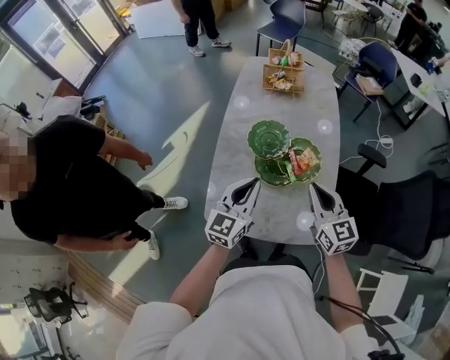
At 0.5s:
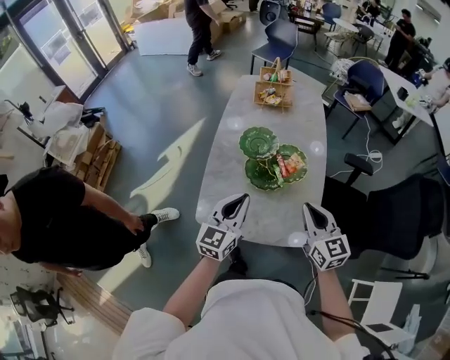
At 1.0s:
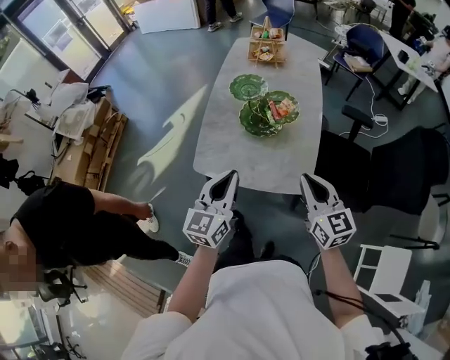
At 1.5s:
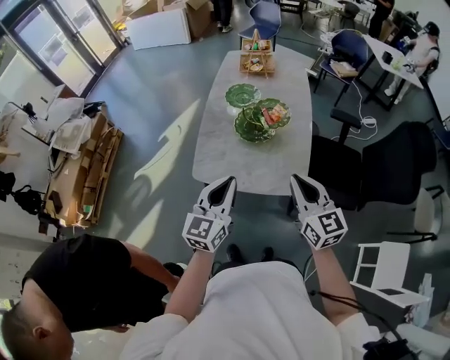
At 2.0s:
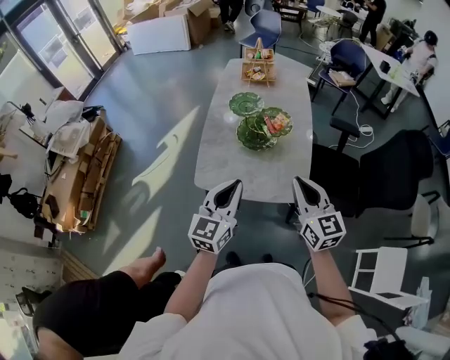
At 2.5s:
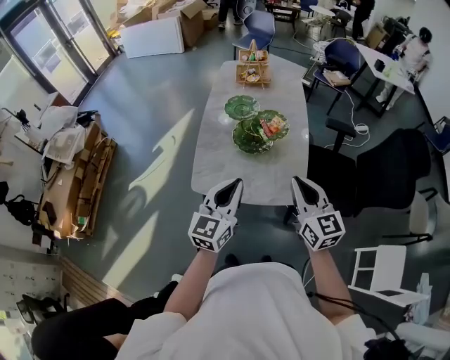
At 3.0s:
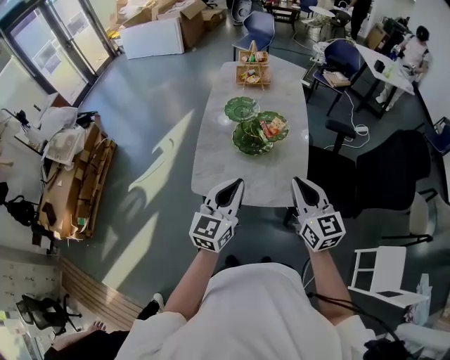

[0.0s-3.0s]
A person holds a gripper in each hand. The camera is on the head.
0.0s to 1.5s: Both grippers travel together backward, some 25 cm.
1.5s to 3.0s: The grippers stay close to where they were, moving slightly.

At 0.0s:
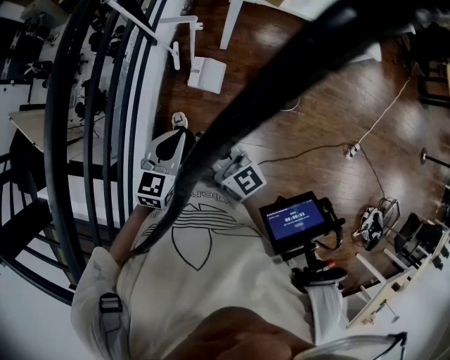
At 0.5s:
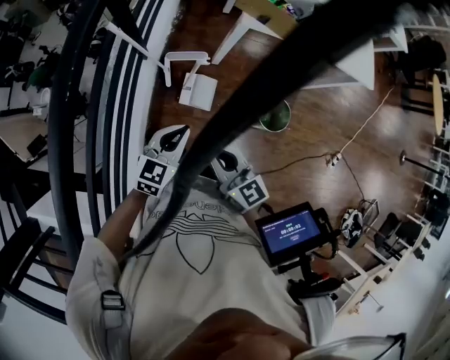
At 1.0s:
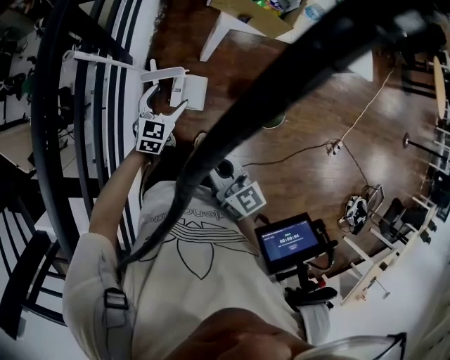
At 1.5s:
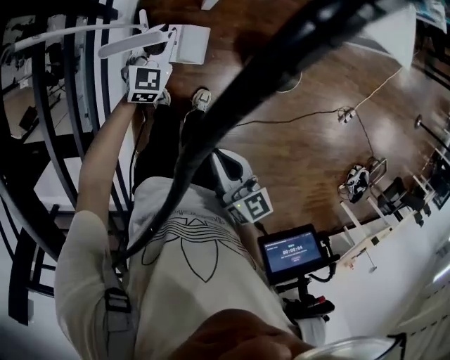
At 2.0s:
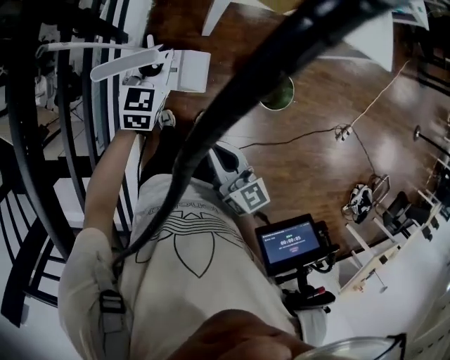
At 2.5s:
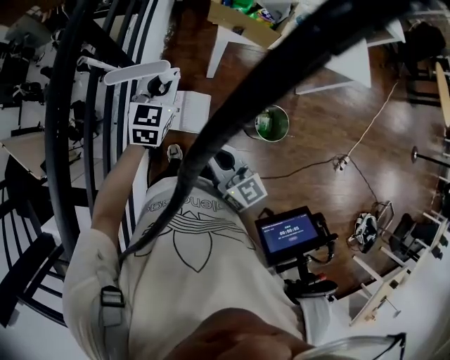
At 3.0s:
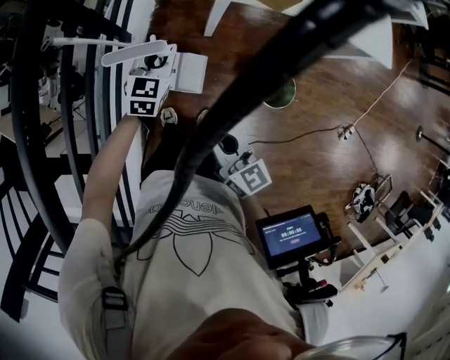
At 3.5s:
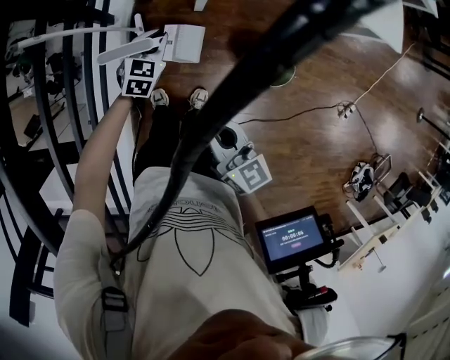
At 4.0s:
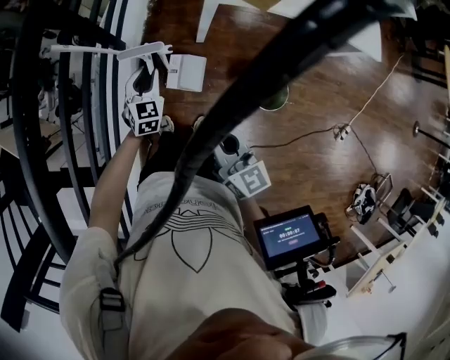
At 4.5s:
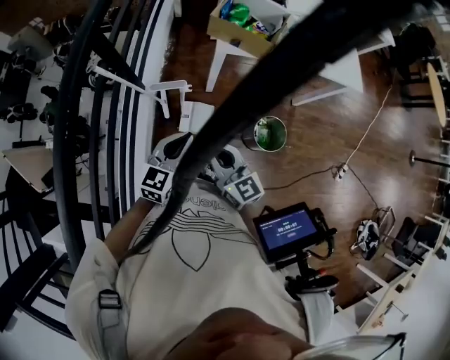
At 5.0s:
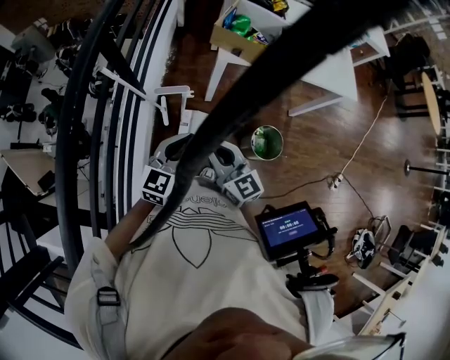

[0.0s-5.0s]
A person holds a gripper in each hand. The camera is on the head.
0.0s to 2.5s: The left gripper is displaced forward by approximately 20 cm, and opens and closes again; the right gripper travels backward and back again, roughly 5 cm each way.
2.5s to 5.0s: The left gripper travels backward by approximately 10 cm, and travels downward and back again, approximately 20 cm each way. The right gripper moves forward, some 5 cm.

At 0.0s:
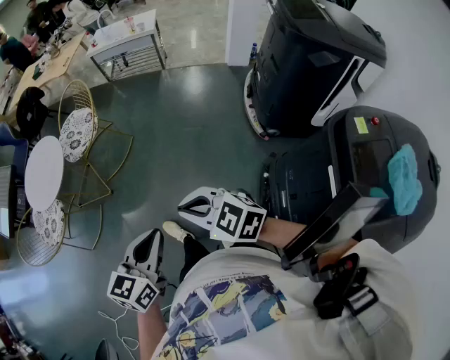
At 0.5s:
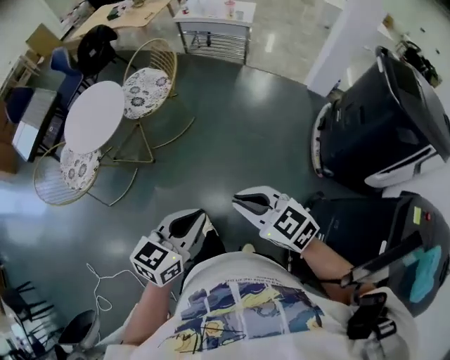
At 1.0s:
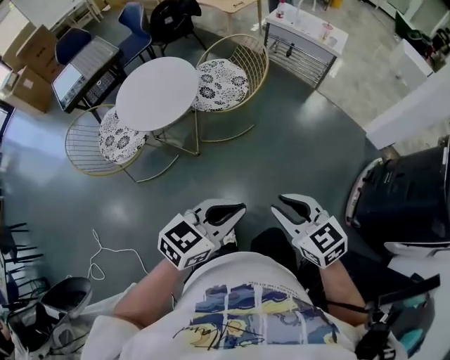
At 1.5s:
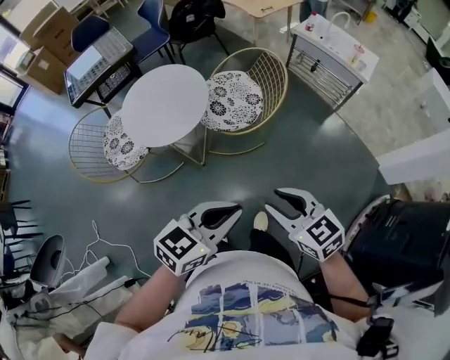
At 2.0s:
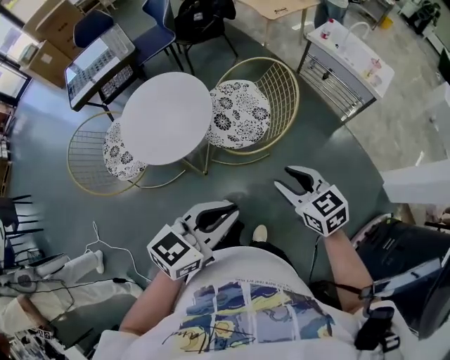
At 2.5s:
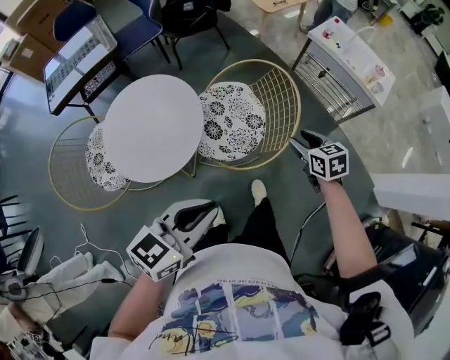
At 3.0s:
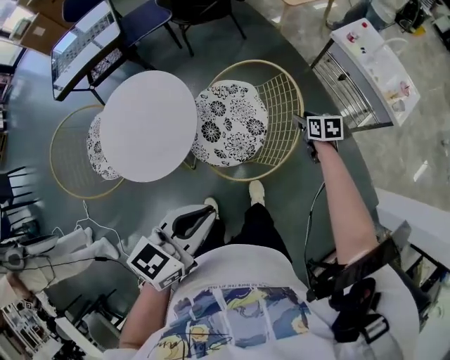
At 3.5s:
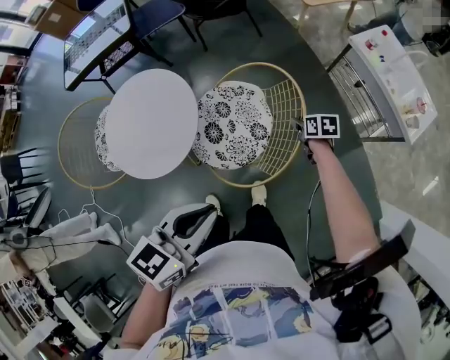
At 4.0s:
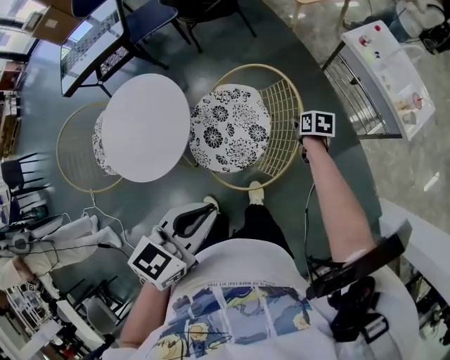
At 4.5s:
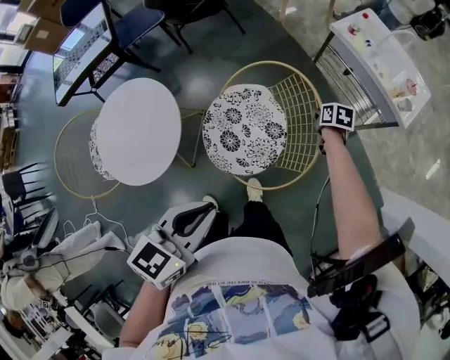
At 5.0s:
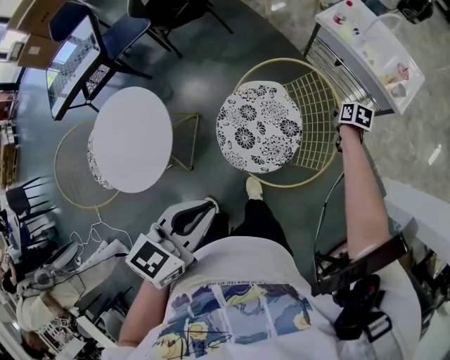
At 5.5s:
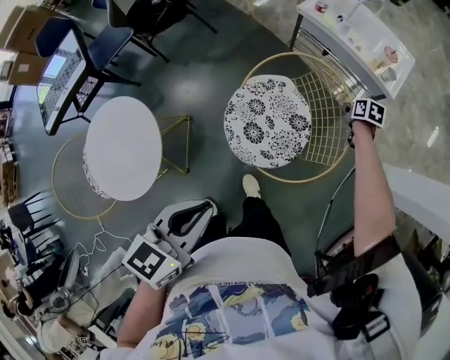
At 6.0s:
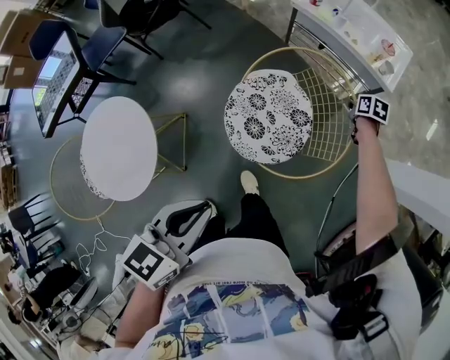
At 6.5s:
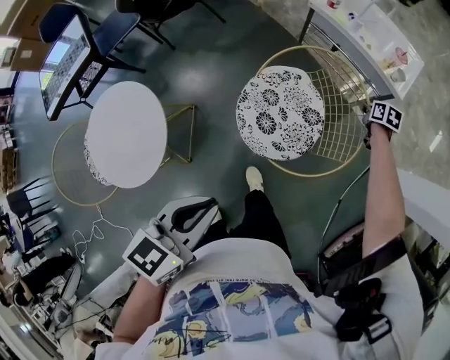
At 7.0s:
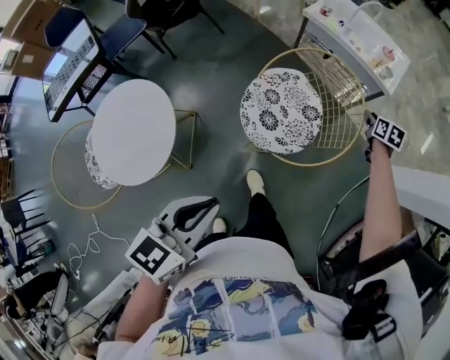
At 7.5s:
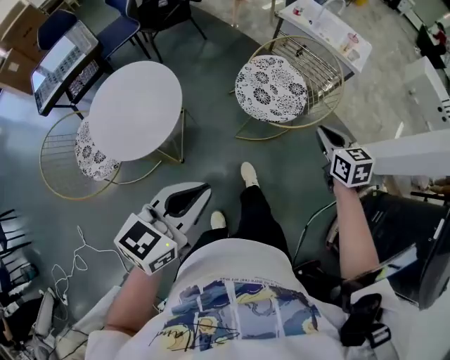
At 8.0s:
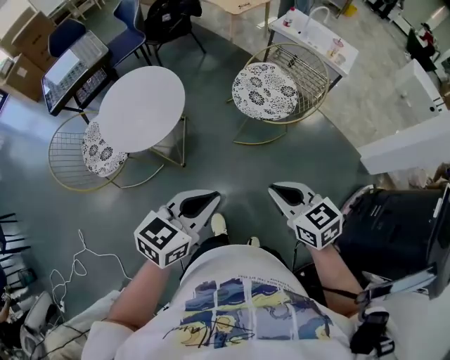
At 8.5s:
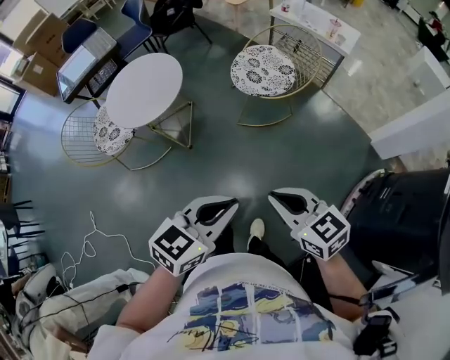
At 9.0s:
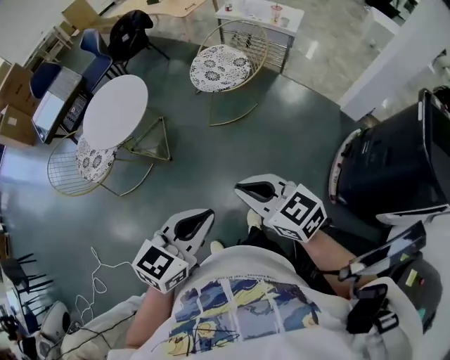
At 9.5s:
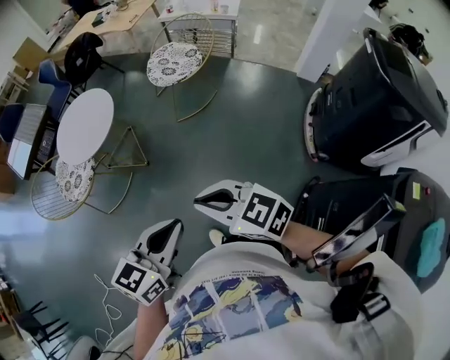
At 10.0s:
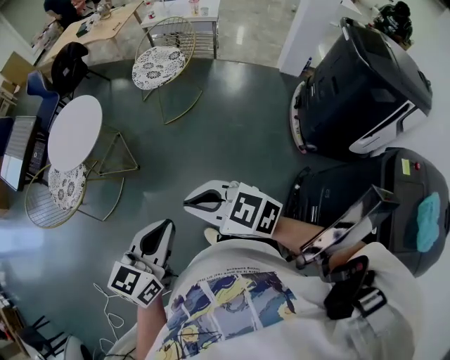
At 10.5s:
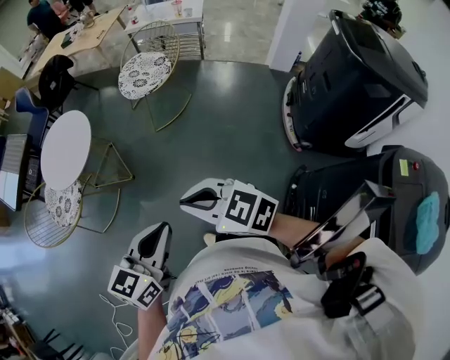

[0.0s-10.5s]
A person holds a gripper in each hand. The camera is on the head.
0.0s to 2.0s: The pair of grippers is taken forward, about 60 cm. The left gripper turns by roughly 20 degrees; the right gripper opens up.
2.0s to 4.0s: The left gripper travels forward by about 30 cm, and turns by some 20 degrees. The right gripper is displaced forward and downward by roughly 50 cm, and turns by roughly 40 degrees.
4.0s to 6.5s: The right gripper moves roughly 35 cm, and turns by some 30 degrees.
6.5s to 8.5s: Both grippers are carried backward, roughly 70 cm. The right gripper tilts its fingers approximately 30 degrees upward.
8.5s to 10.5s: Both grippers travel together backward and to the left, some 25 cm.

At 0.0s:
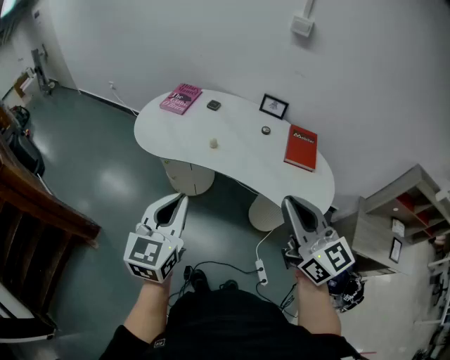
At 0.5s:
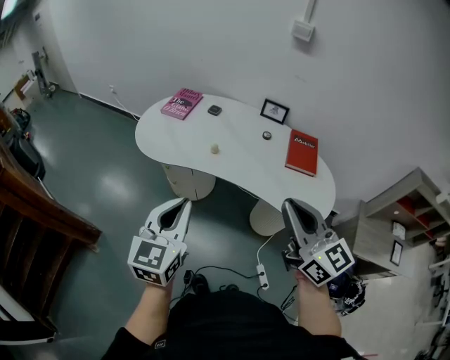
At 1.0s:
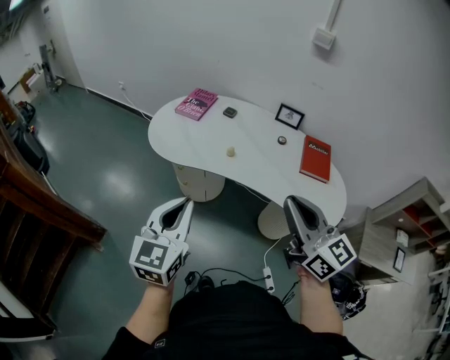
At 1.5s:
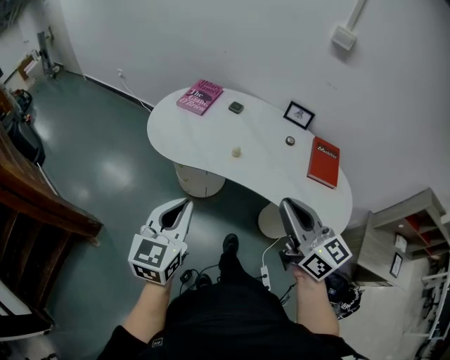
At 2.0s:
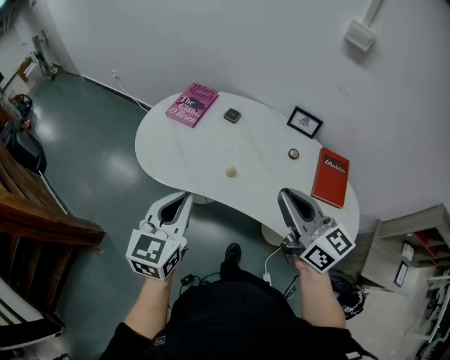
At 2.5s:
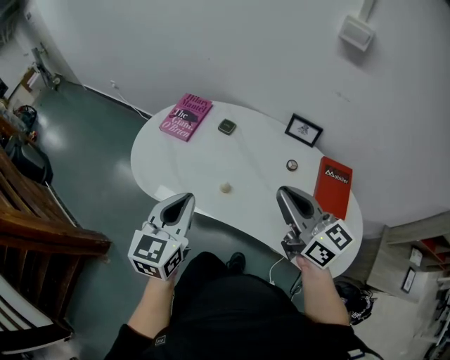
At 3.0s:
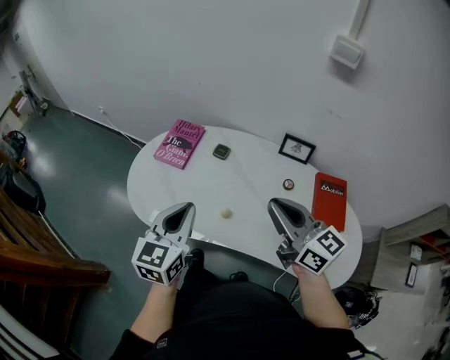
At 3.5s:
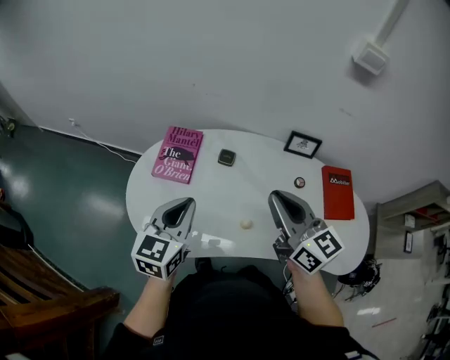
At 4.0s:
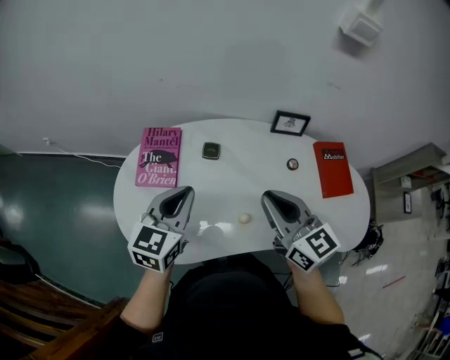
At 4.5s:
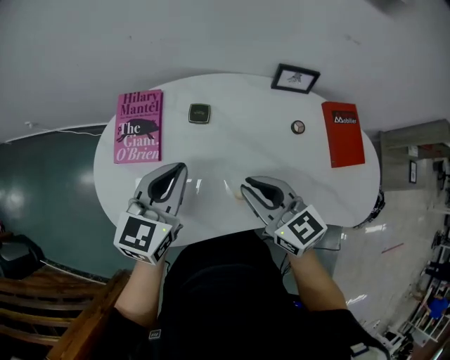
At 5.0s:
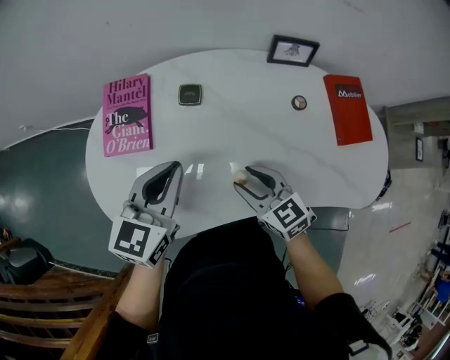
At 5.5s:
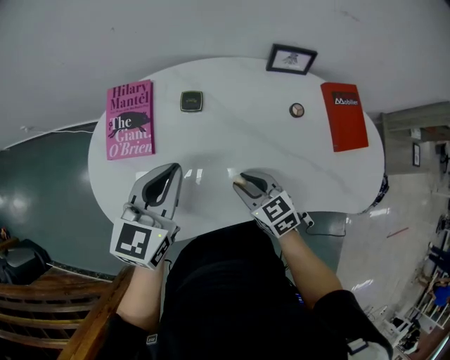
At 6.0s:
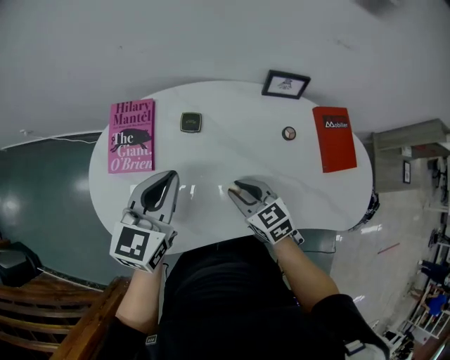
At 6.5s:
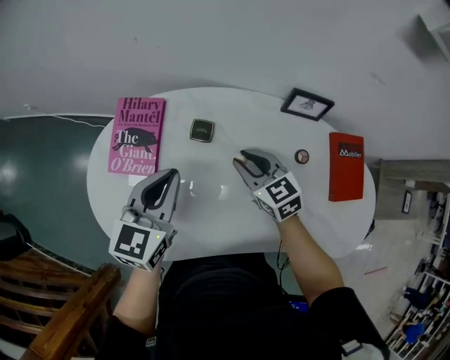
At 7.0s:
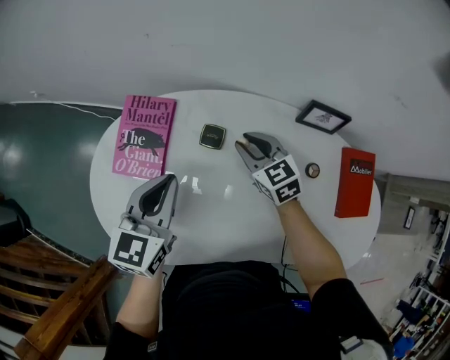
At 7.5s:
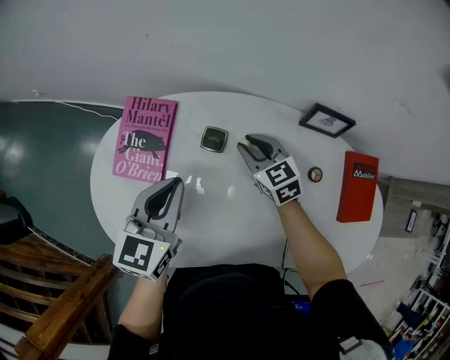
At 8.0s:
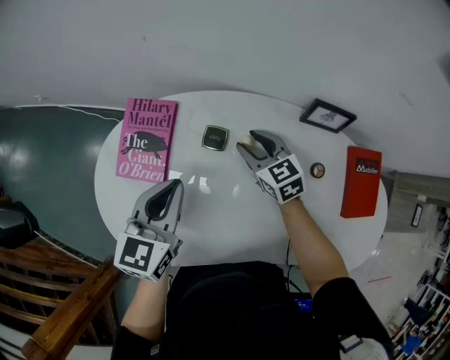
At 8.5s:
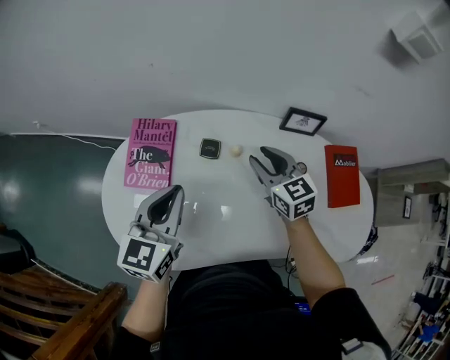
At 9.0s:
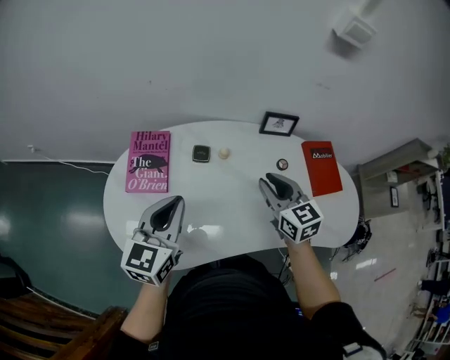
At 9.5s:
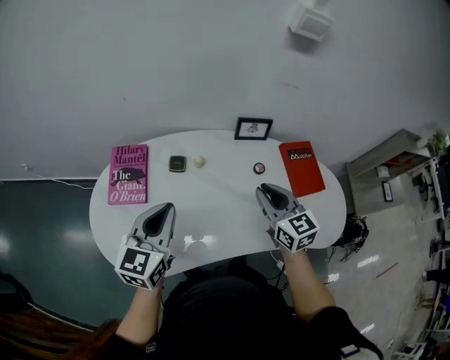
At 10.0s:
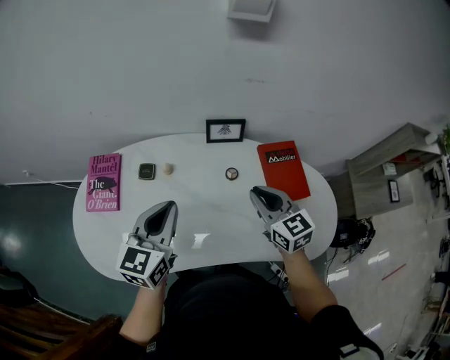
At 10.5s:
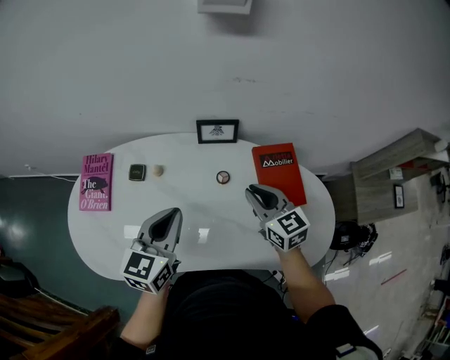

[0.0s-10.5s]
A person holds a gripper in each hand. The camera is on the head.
0.0s to 2.0s: The grippers both shift forward by roughly 25 cm.
2.0s to 4.0s: The left gripper shifts by roughly 30 cm, and swivels some 30 degrees; the right gripper changes place by roughly 25 cm, and rotates about 30 degrees.
4.0s to 6.5s: The left gripper heads forward and downward, covering approximately 10 cm; the right gripper heads downward and forward, covering some 25 cm, and rotates about 30 degrees.
6.5s to 8.5s: The right gripper travels upward by about 5 cm.
8.5s to 10.5s: Both grippers travel together to the right, approximately 25 cm. The right gripper closes up.
